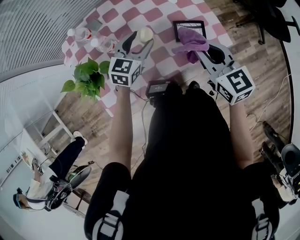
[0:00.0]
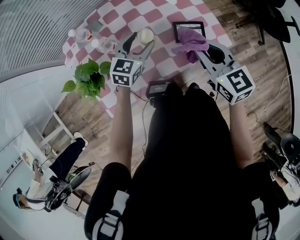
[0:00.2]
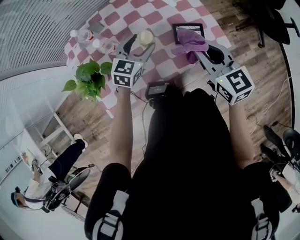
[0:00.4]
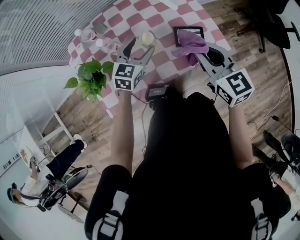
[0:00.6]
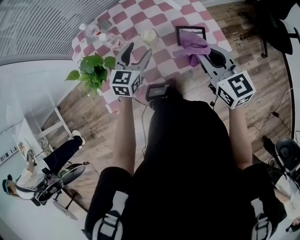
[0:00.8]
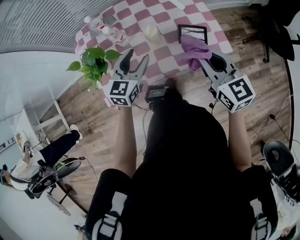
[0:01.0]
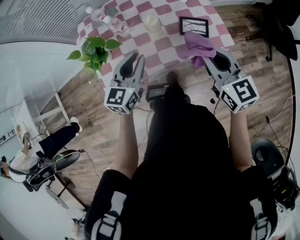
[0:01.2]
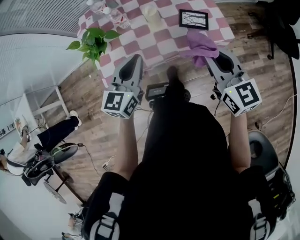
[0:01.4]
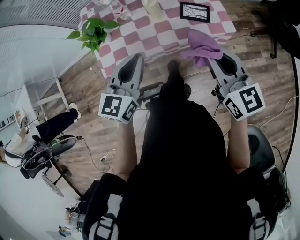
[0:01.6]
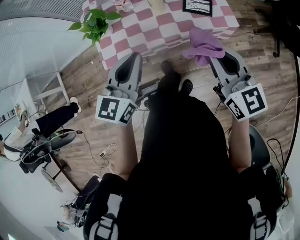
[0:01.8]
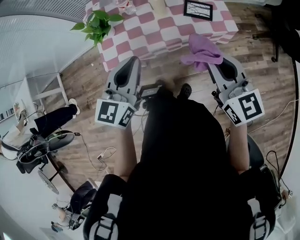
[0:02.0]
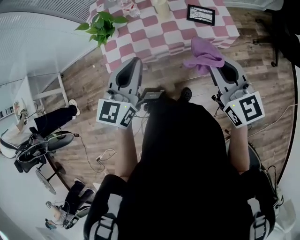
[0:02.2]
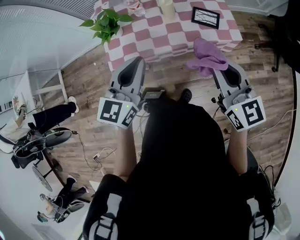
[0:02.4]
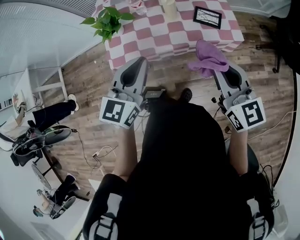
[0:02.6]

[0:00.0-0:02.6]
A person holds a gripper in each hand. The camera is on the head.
0.0 to 1.2 s: The left gripper moves backward and upward, some 20 cm, changes its angle by some 20 degrees, and closes its fingers. Meanwhile the right gripper goes approximately 10 cm backward.
1.2 to 2.6 s: The right gripper moves backward, about 10 cm. Meanwhile the left gripper moves backward and upward, about 15 cm.

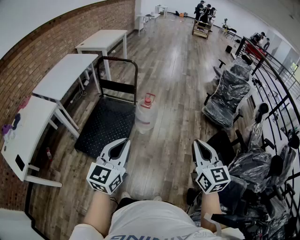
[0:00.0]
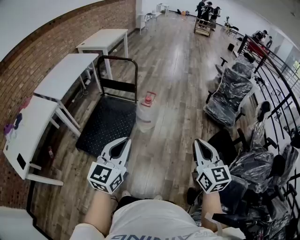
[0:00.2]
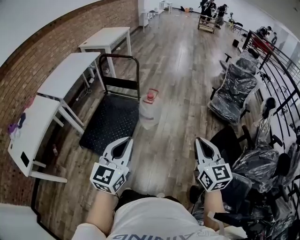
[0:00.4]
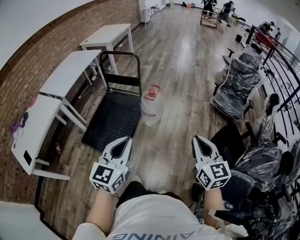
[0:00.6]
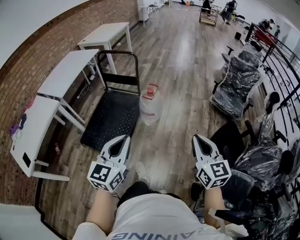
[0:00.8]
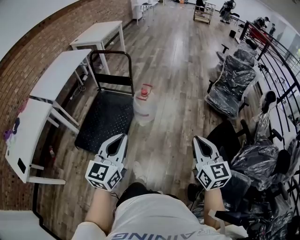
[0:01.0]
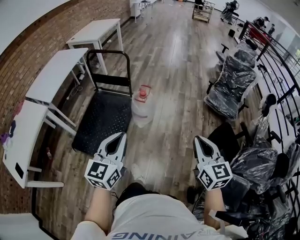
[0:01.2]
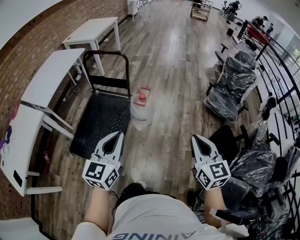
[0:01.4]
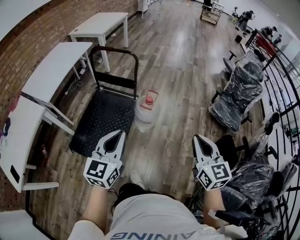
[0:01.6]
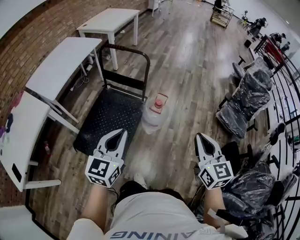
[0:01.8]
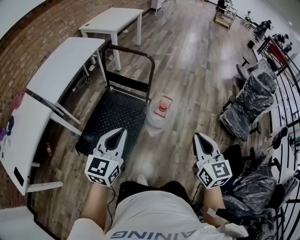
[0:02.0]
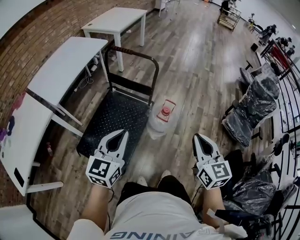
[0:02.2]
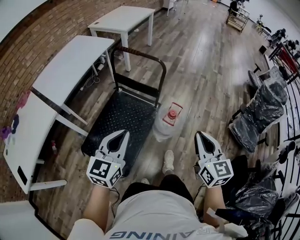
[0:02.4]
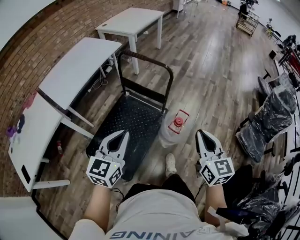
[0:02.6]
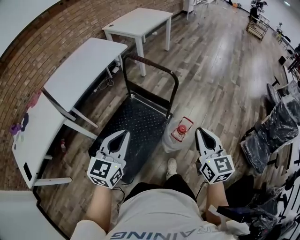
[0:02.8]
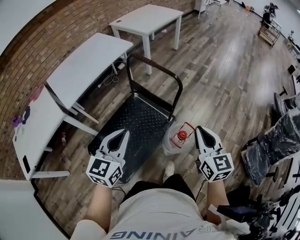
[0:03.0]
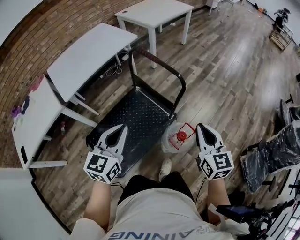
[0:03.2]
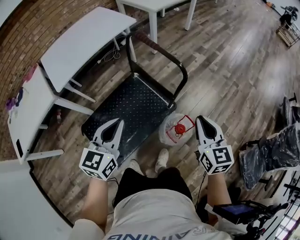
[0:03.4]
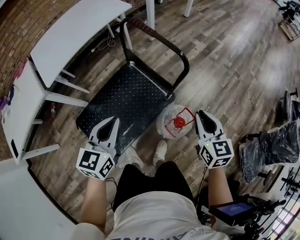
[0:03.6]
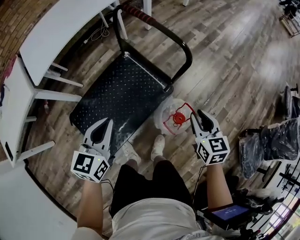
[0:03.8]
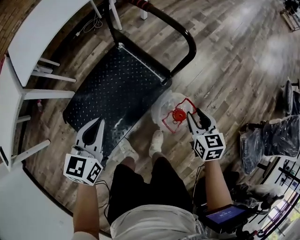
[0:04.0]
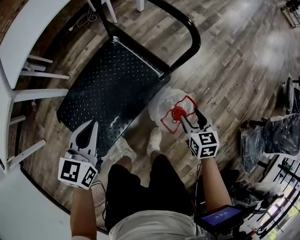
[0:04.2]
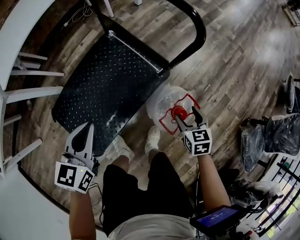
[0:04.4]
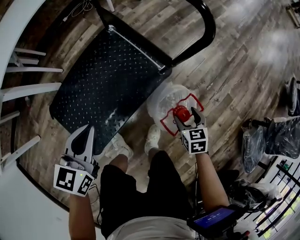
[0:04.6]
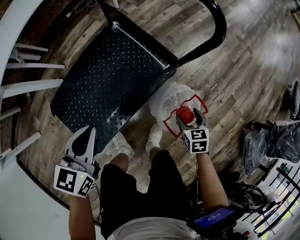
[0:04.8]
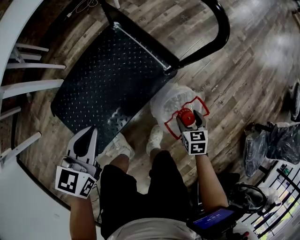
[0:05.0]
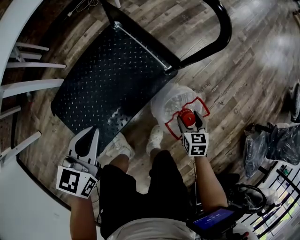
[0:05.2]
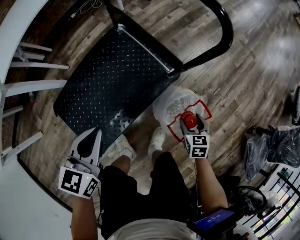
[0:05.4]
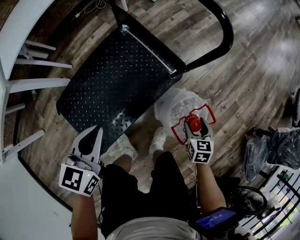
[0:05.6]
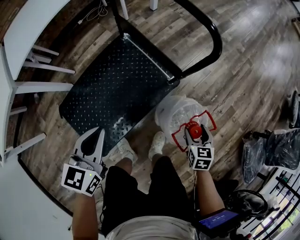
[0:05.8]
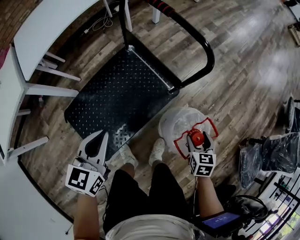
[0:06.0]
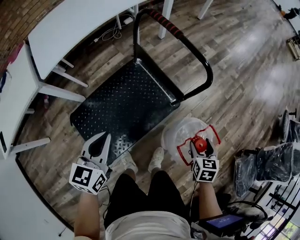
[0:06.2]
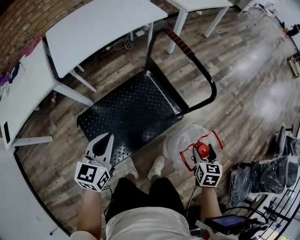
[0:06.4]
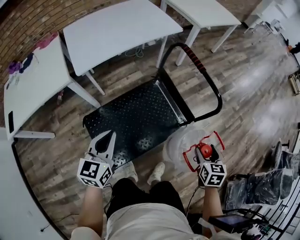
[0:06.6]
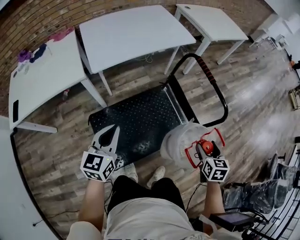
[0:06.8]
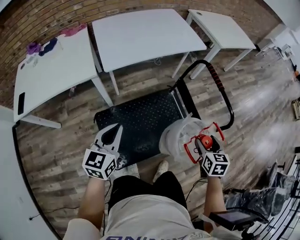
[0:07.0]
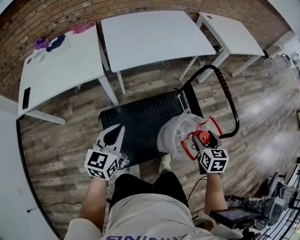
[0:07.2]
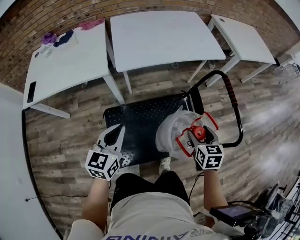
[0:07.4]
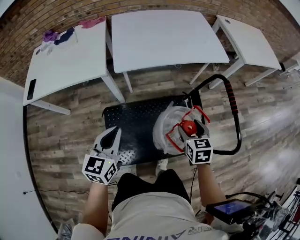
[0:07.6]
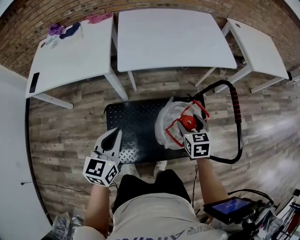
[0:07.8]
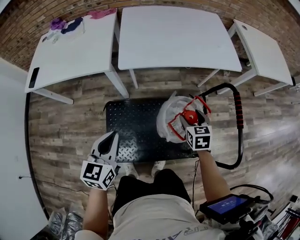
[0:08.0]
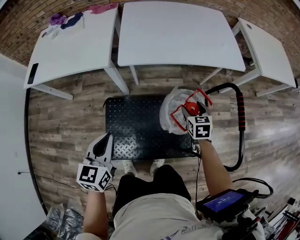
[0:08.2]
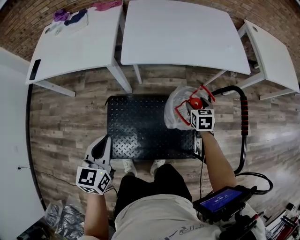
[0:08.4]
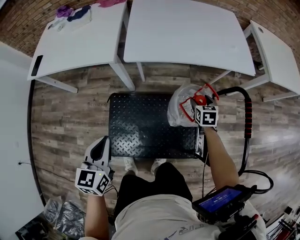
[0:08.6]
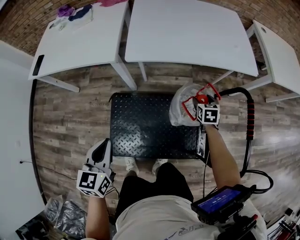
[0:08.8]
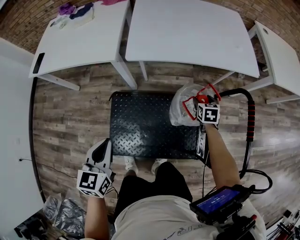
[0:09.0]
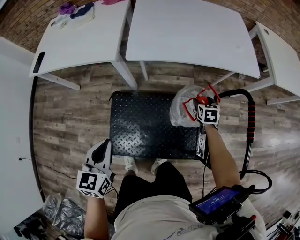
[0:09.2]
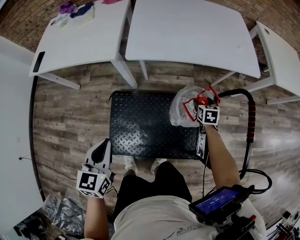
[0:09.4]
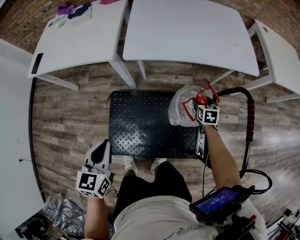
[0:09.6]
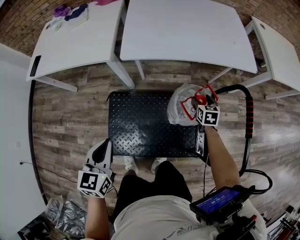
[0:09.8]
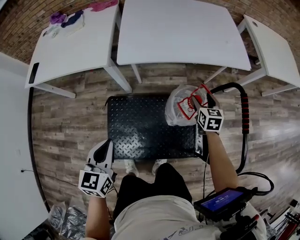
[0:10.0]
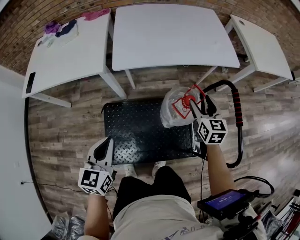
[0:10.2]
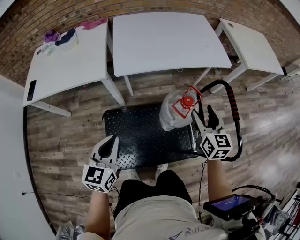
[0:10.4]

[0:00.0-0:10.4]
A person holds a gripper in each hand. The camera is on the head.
0.0 to 1.4 s: The two grippers go roughly 15 cm forward.
1.4 to 3.0 s: The grippers both shift forward by approximately 40 cm. The left gripper turns by roughly 20 degrees; the right gripper turns by some 20 degrees.
3.0 to 4.4 s: The left gripper is displaced downward by approximately 30 cm, and rotates about 20 degrees, while the right gripper heads downward, covering approximately 40 cm, points its fingers some 40 degrees further downward, and opens its fingers.
4.4 to 6.0 s: Both grippers move upward, approximately 5 cm.
6.0 to 7.4 s: The left gripper ends up approximately 25 cm from where it was, and turns by approximately 30 degrees. The right gripper shifts by roughly 40 cm, and swivels approximately 40 degrees.
7.4 to 9.0 s: The right gripper shifts some 30 cm forward and downward. Meanwhile the left gripper moves about 5 cm, and rotates about 30 degrees.
9.0 to 10.4 s: The right gripper goes roughly 30 cm upward and backward, and tilts its fingers approximately 30 degrees upward.

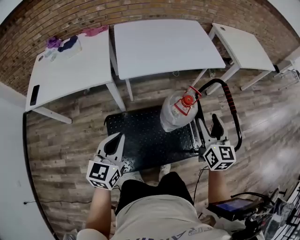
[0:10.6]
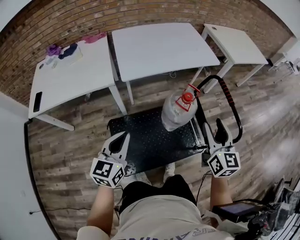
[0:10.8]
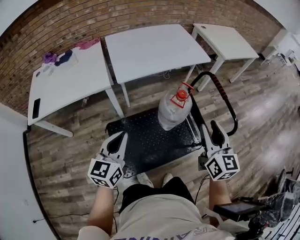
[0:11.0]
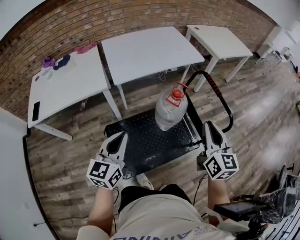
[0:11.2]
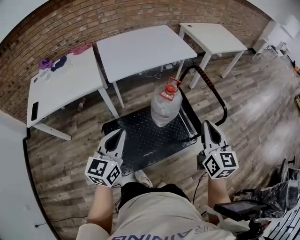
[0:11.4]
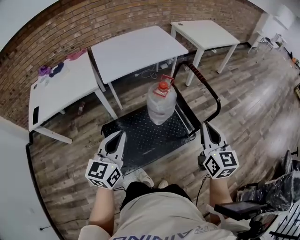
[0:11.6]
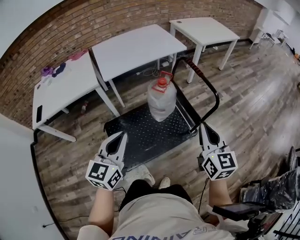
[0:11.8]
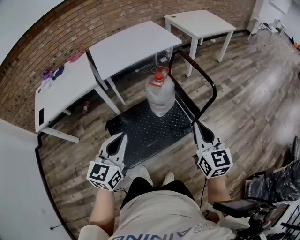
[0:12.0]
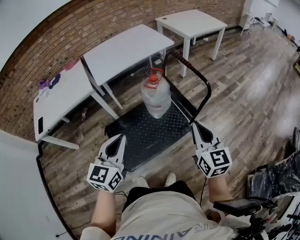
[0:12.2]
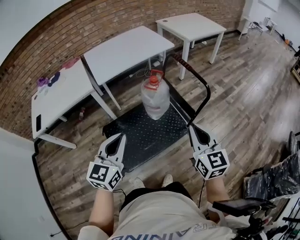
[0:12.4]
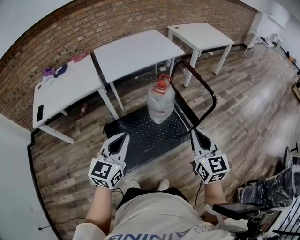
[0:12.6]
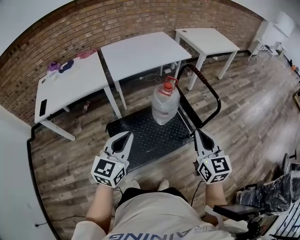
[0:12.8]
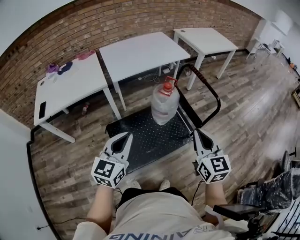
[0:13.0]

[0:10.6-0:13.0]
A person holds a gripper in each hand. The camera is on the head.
10.6 to 11.8 s: The left gripper travels backward, to the right and upward by approximately 20 cm, while the right gripper travels backward and to the right by about 30 cm, and closes its fingers.
11.8 to 13.0 s: The left gripper is displaced to the left by about 5 cm; the right gripper moves to the left, approximately 10 cm.

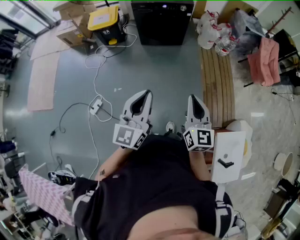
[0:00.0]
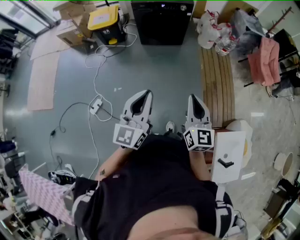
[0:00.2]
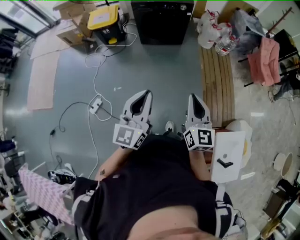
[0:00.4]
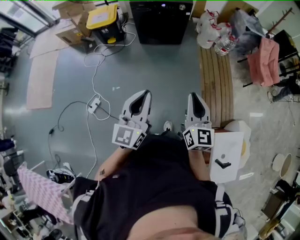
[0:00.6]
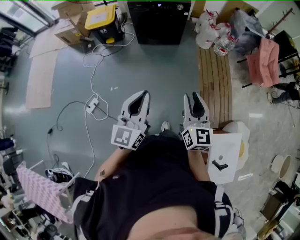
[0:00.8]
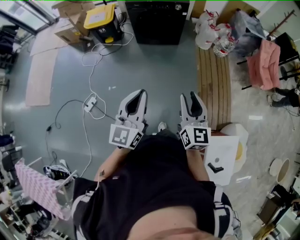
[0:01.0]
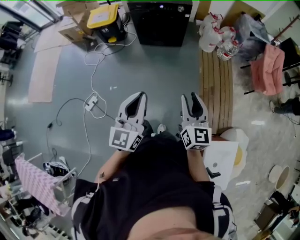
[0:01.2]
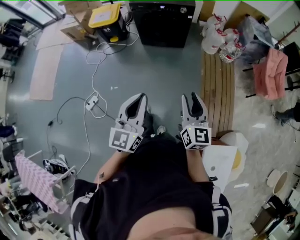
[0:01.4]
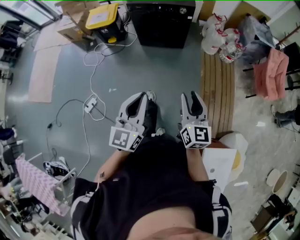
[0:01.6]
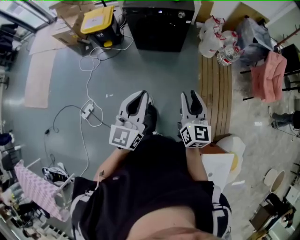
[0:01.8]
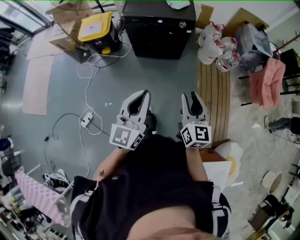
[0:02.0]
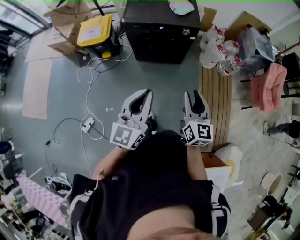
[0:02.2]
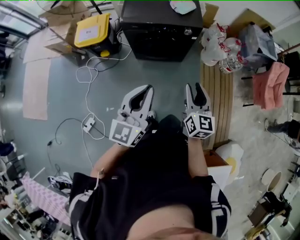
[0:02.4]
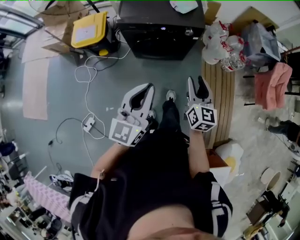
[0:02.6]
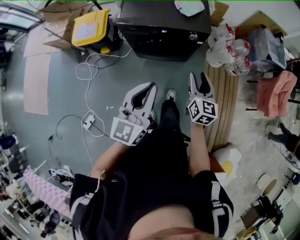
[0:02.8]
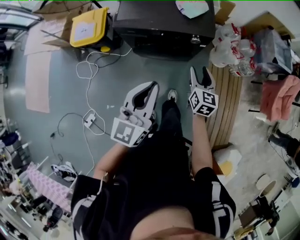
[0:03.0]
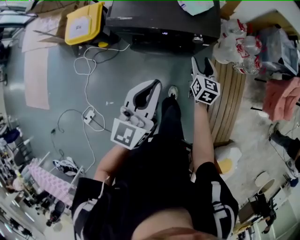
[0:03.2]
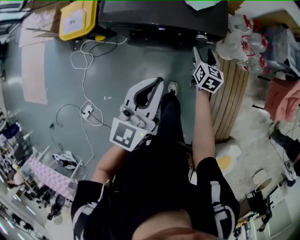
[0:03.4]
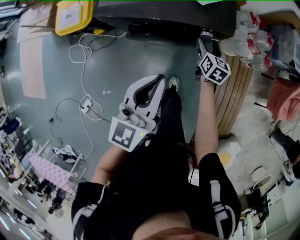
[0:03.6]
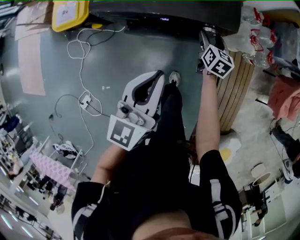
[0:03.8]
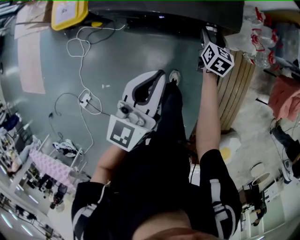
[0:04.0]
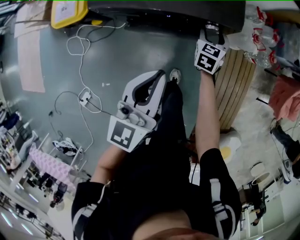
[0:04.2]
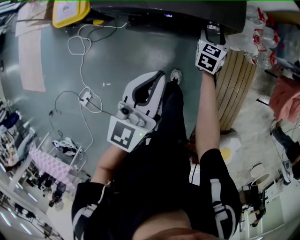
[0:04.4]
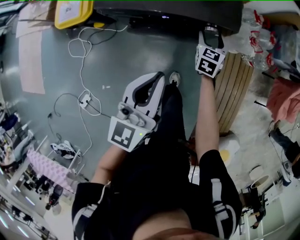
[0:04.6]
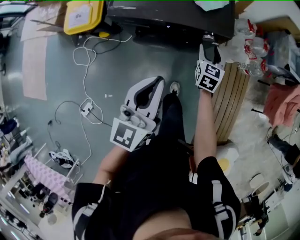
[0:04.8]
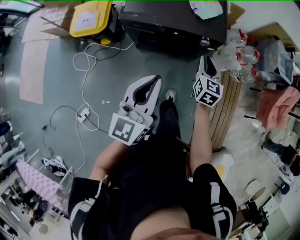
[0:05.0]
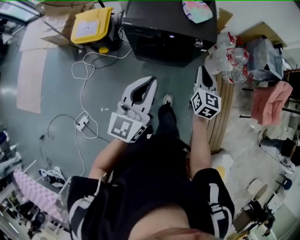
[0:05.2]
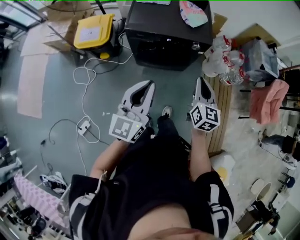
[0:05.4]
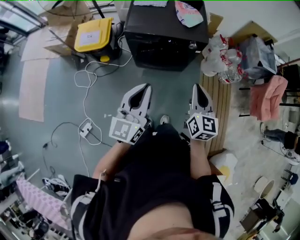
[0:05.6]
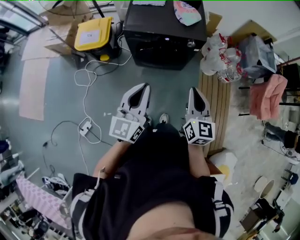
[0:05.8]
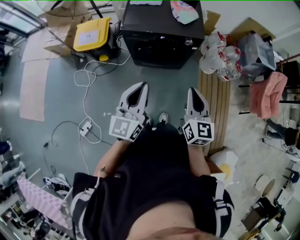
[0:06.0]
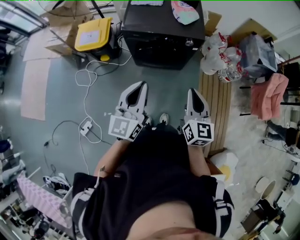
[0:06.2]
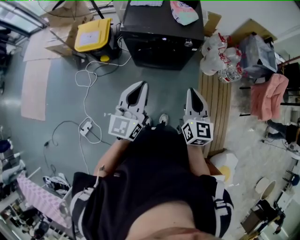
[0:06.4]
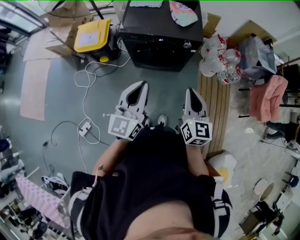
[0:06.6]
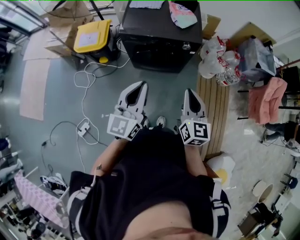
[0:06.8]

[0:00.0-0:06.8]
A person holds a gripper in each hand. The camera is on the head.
0.0 to 1.4 s: The two grippers go some 15 cm to the right and forward. The right gripper opens.
1.4 to 2.8 s: The pair of grippers is taken forward, about 70 cm.
2.8 to 4.0 s: Both grippers move forward and downward, approximately 40 cm.
4.0 to 5.4 s: The left gripper shifts about 35 cm backward and upward; the right gripper goes roughly 50 cm backward and upward, turns by about 20 degrees, and closes its fingers.
5.4 to 6.8 s: The right gripper shifts some 10 cm backward and upward; the left gripper ends up some 5 cm from where it was.

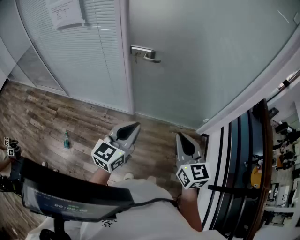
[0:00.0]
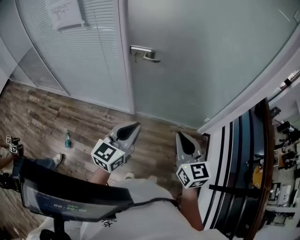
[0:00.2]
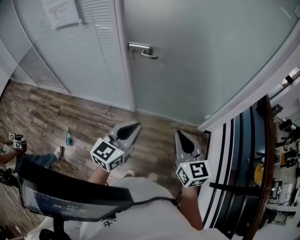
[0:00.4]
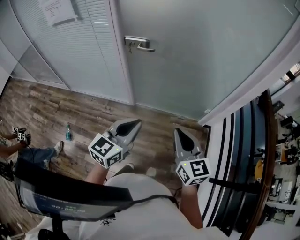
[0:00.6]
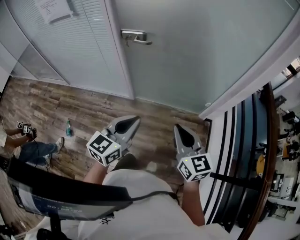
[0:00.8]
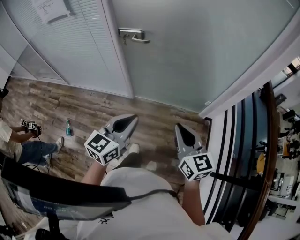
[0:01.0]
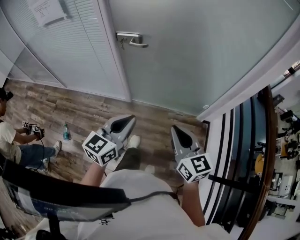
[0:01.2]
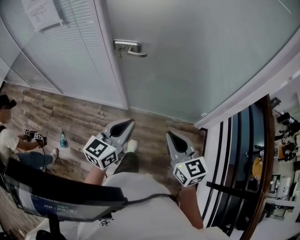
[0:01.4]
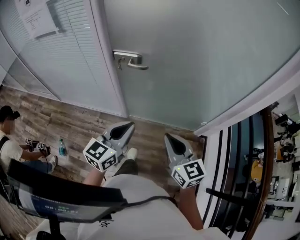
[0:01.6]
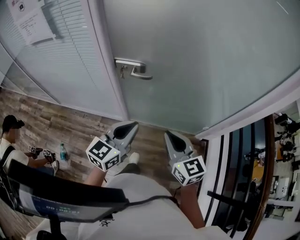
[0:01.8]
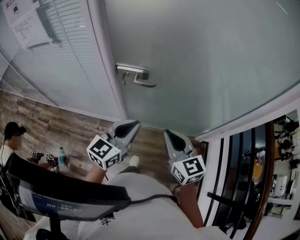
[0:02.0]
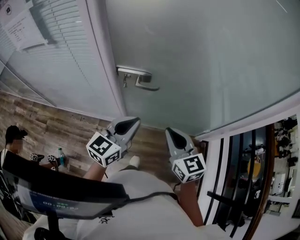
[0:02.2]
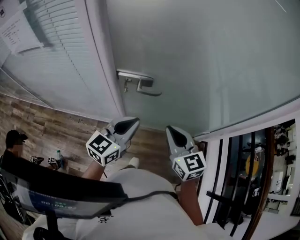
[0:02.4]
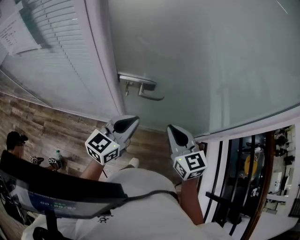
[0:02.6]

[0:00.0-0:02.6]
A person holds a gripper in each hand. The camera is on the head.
0.0 to 1.2 s: The two grippers go roughly 5 cm to the right.
1.2 to 2.6 s: Both grippers move forward and to the left, approximately 35 cm.
